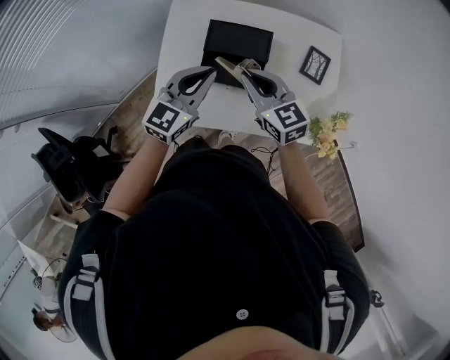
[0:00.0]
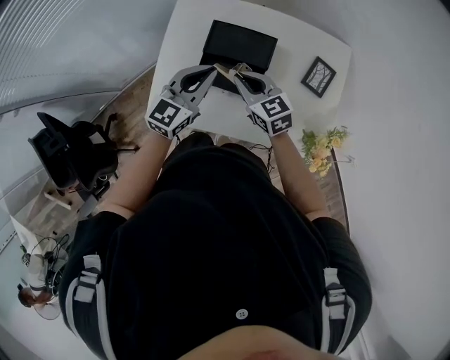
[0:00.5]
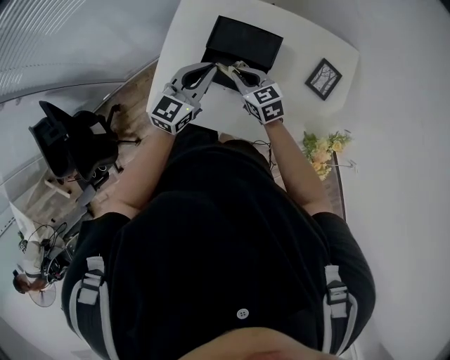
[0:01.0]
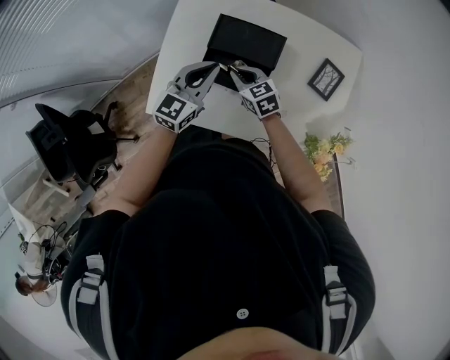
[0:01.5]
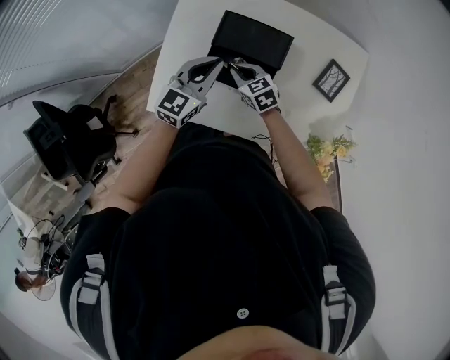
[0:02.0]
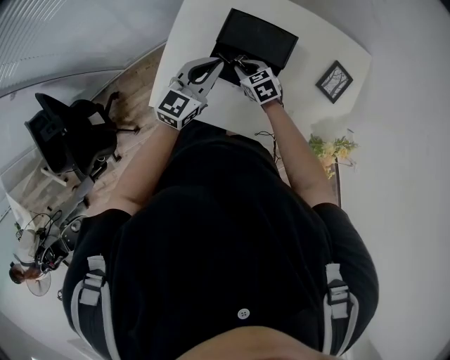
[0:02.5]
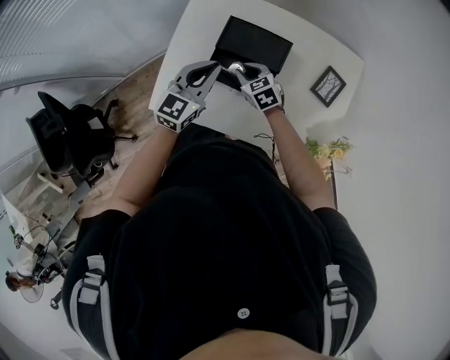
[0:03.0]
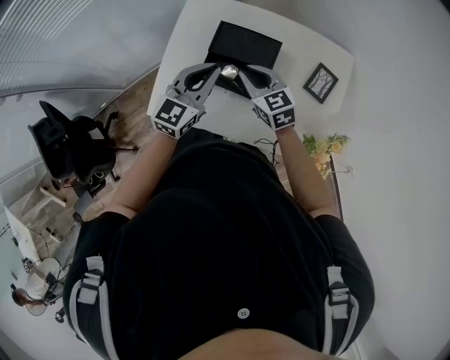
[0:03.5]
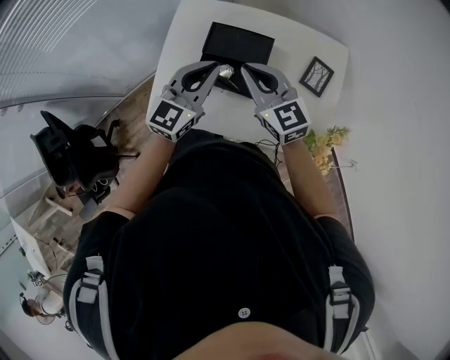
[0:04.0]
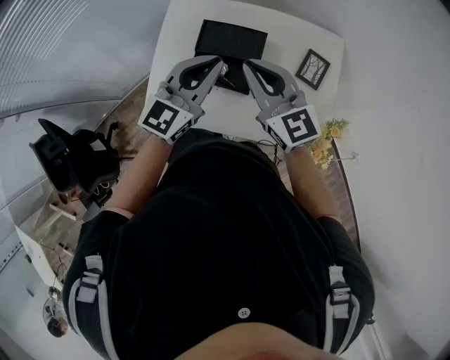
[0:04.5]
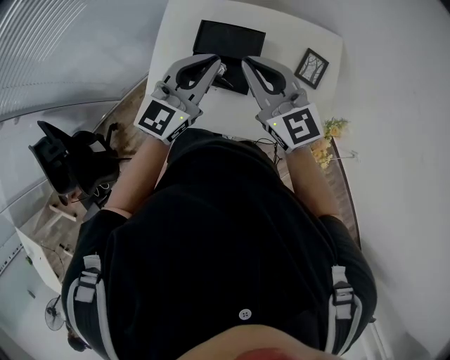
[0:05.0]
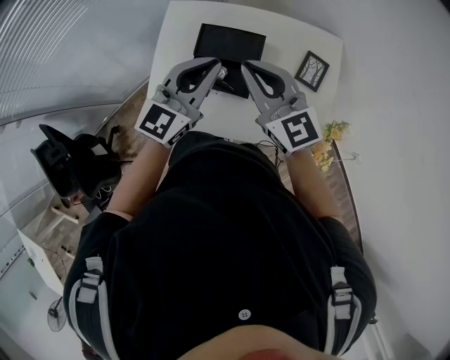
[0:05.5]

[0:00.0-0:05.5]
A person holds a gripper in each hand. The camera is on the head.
0:00.0 to 0:02.0: The right gripper travels downward by about 25 cm, and rotates roughly 30 degrees; the left gripper travels downward and forward by some 10 cm.
0:02.0 to 0:03.5: The left gripper moves upward, roughly 5 cm; the right gripper moves upward, roughly 15 cm.
0:03.5 to 0:05.5: The left gripper moves upward, approximately 10 cm. Meanwhile the right gripper shifts approximately 20 cm upward, and rotates roughly 20 degrees.

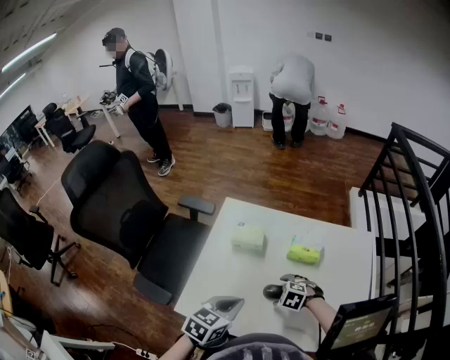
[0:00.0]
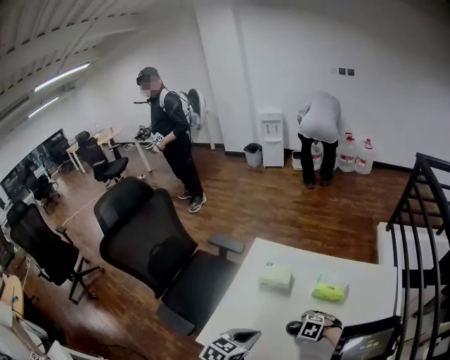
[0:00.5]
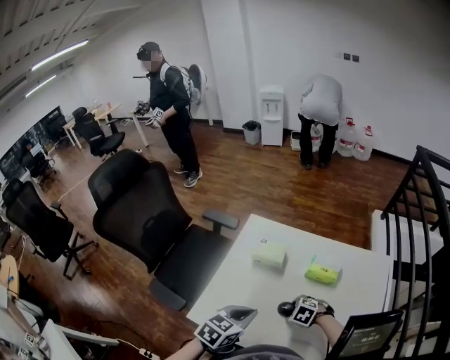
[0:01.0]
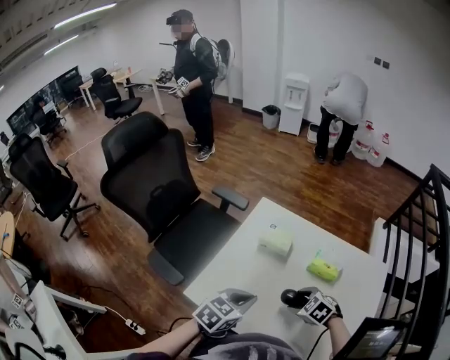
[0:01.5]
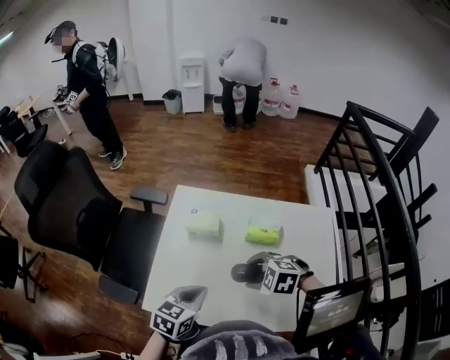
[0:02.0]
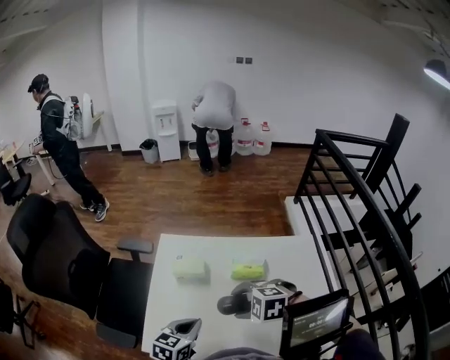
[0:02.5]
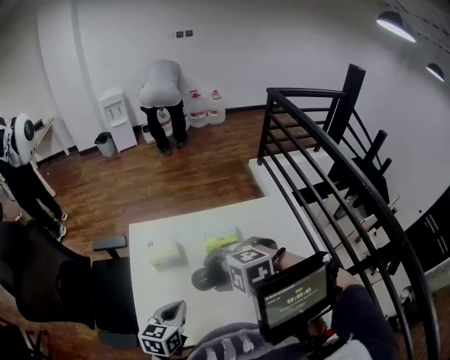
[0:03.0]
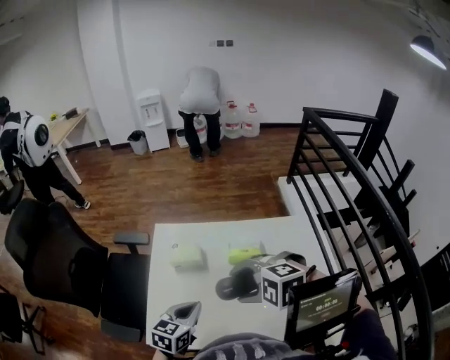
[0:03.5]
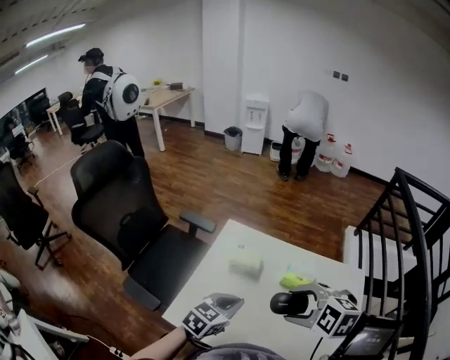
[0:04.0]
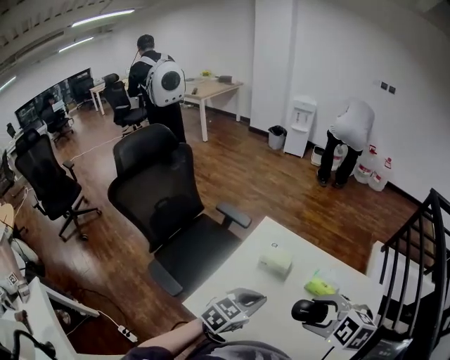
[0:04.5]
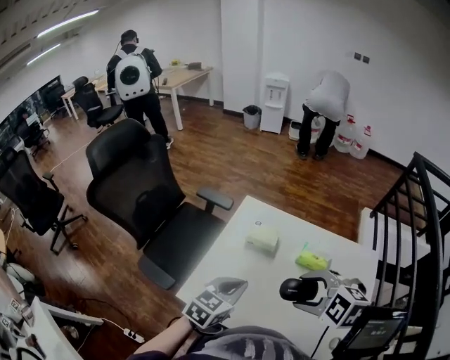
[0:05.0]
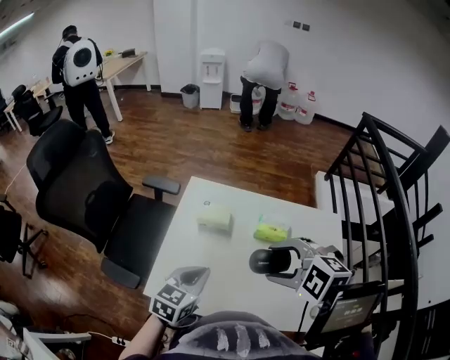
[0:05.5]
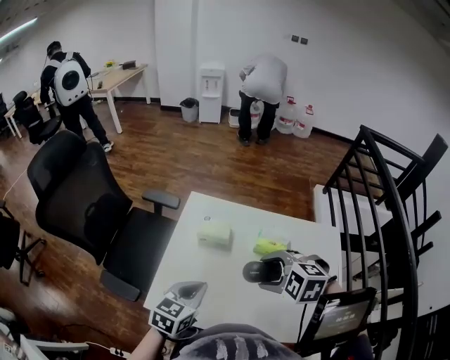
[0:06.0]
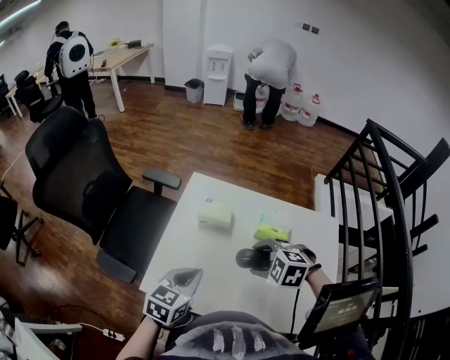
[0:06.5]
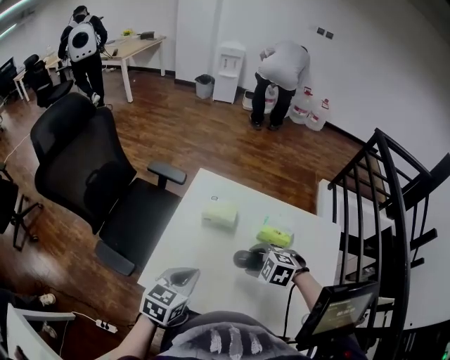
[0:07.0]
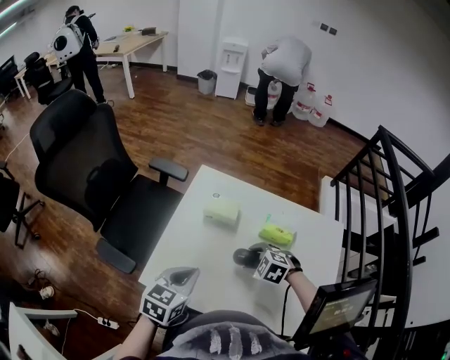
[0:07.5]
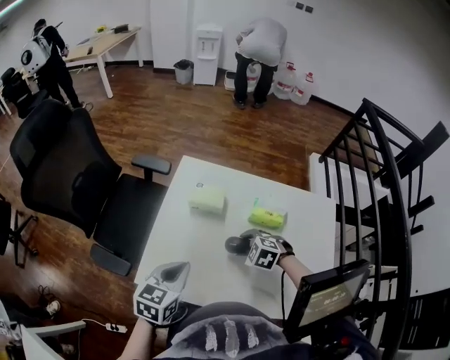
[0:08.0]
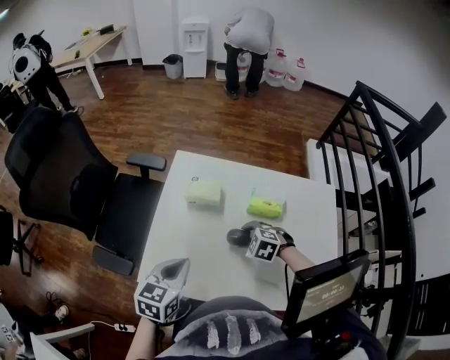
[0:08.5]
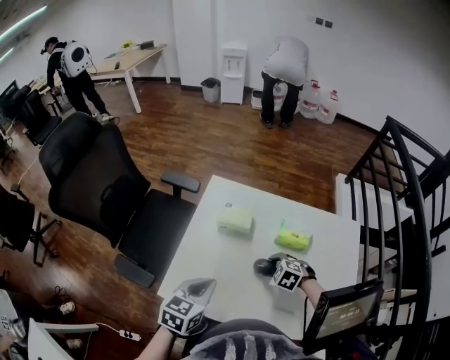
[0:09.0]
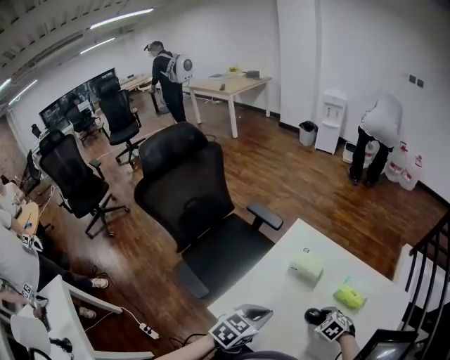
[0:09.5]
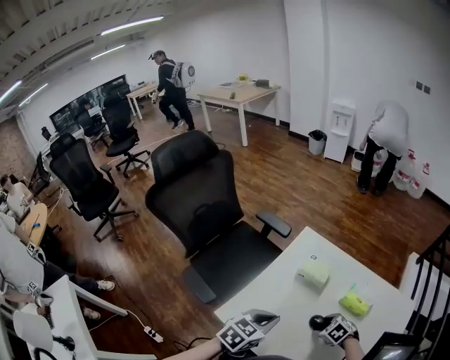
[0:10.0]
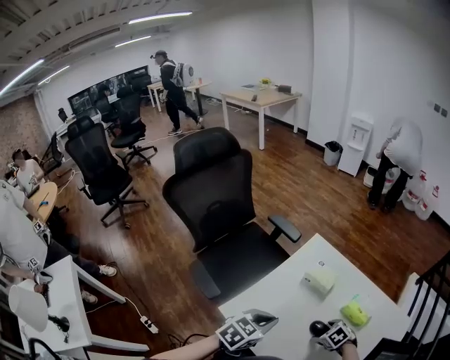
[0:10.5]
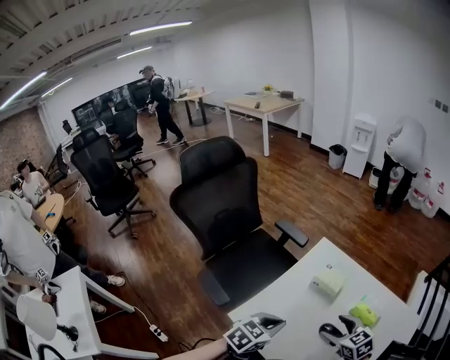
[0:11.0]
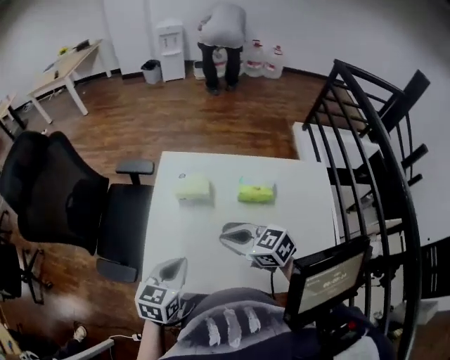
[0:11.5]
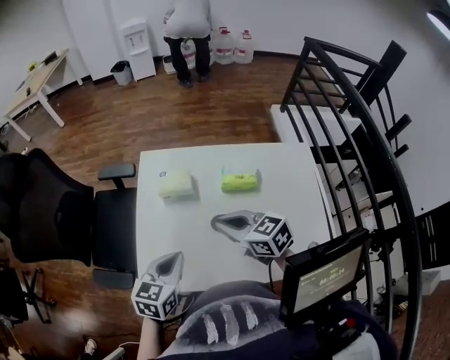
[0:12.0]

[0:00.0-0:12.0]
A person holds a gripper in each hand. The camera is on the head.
0:00.0 to 0:02.0: The right gripper shifts roughly 15 cm upward.
0:02.0 to 0:04.0: The left gripper shifts by about 5 cm. The right gripper moves upward, some 15 cm.
0:04.0 to 0:06.0: The right gripper heads downward, covering about 5 cm, while the left gripper changes place by about 5 cm.
0:06.0 to 0:08.0: The right gripper moves downward, roughly 20 cm.
0:08.0 to 0:10.0: The right gripper goes roughly 5 cm downward.
0:10.0 to 0:12.0: The right gripper travels upward by approximately 20 cm, angles its fingers upward, by approximately 40 degrees, and closes up.

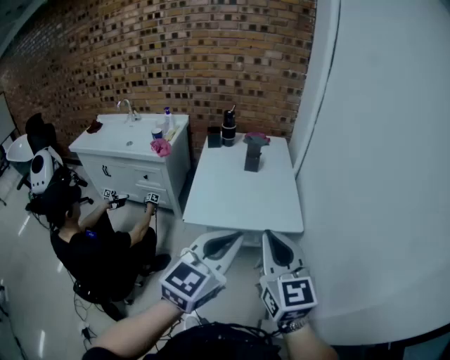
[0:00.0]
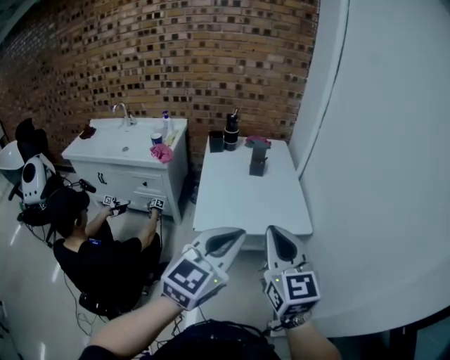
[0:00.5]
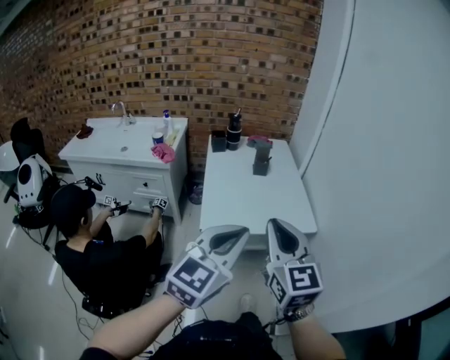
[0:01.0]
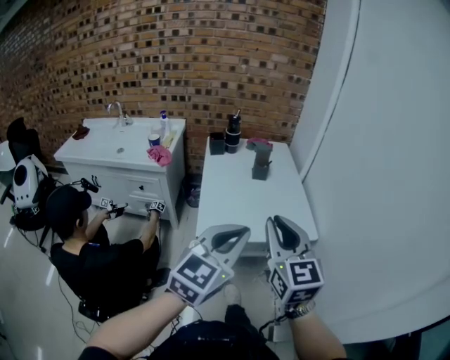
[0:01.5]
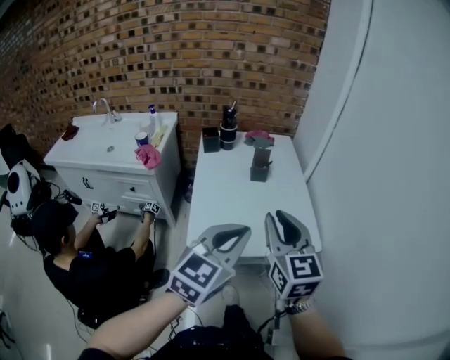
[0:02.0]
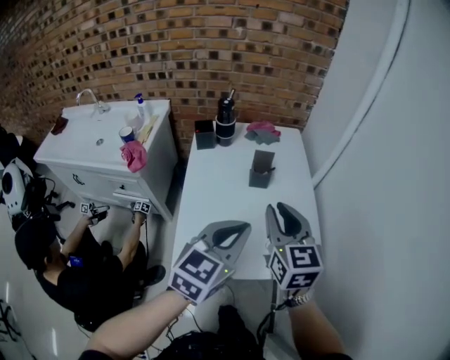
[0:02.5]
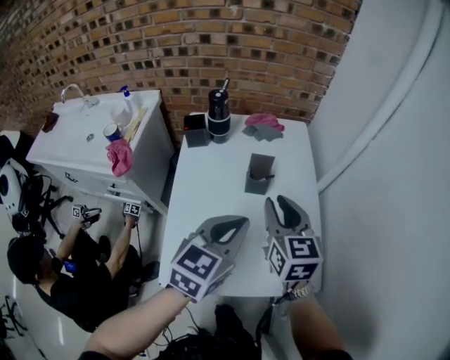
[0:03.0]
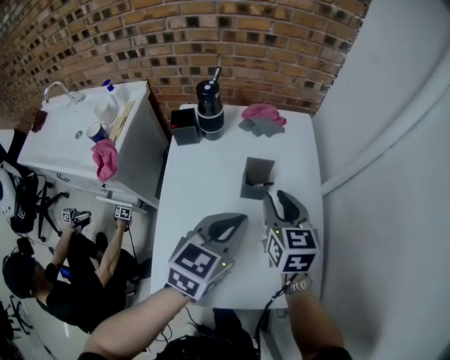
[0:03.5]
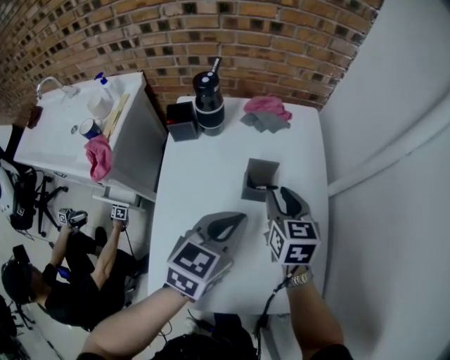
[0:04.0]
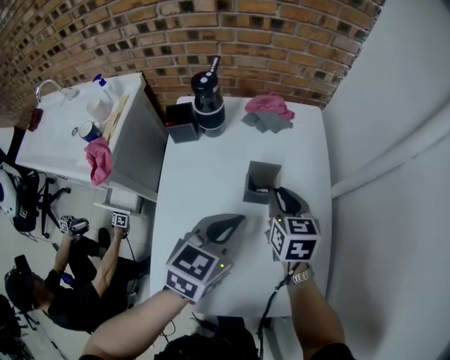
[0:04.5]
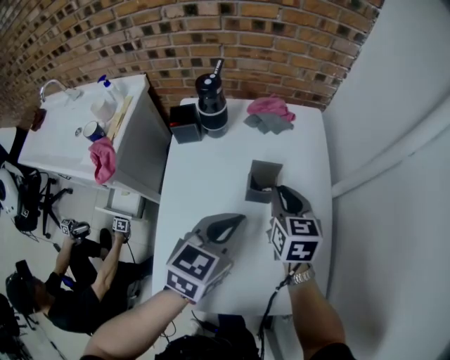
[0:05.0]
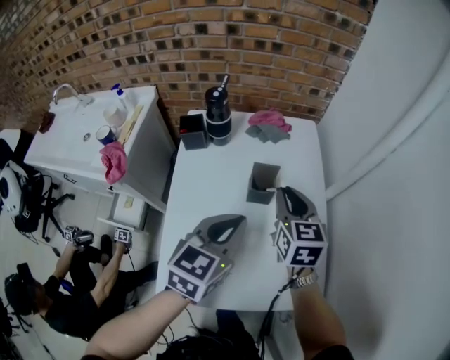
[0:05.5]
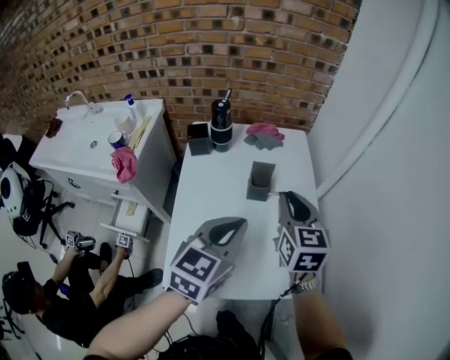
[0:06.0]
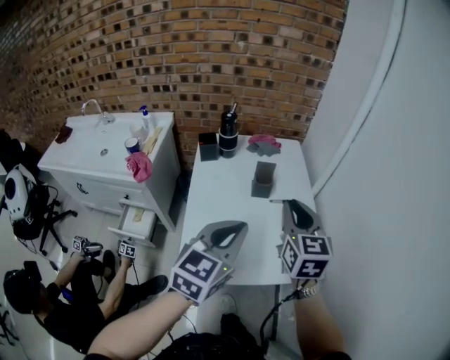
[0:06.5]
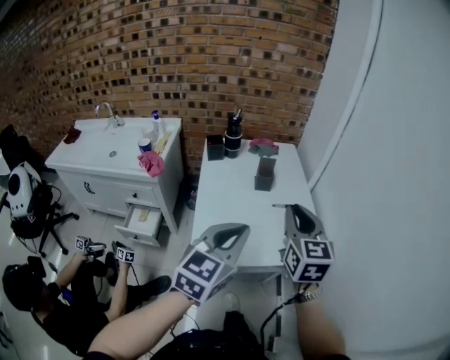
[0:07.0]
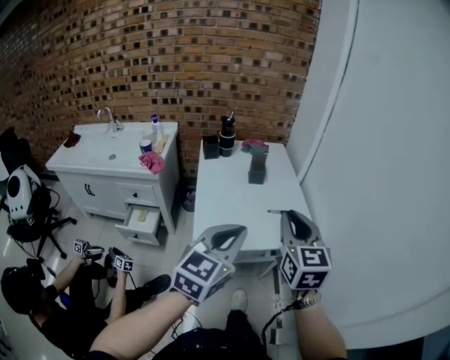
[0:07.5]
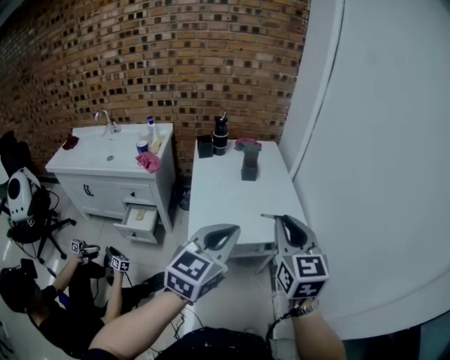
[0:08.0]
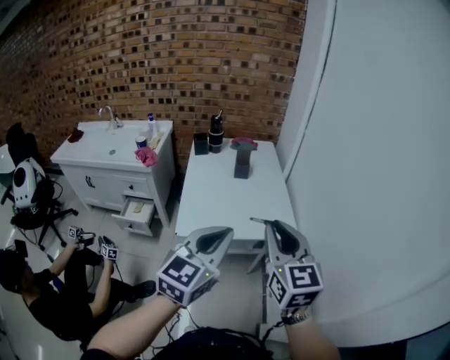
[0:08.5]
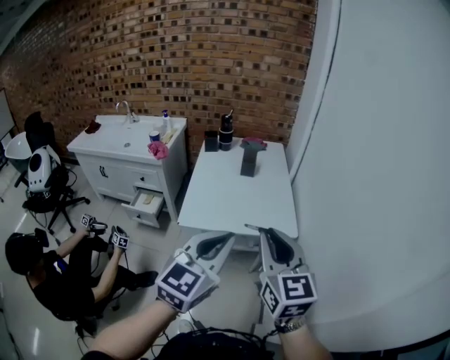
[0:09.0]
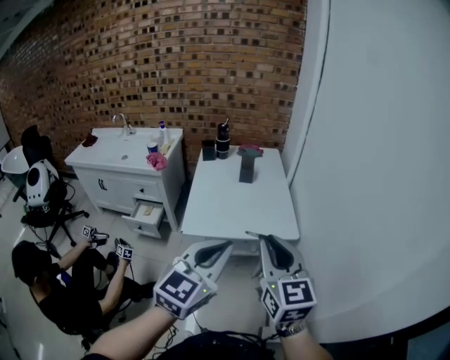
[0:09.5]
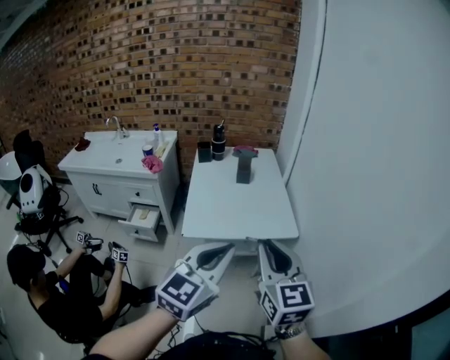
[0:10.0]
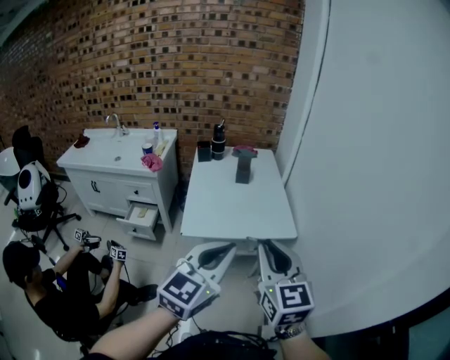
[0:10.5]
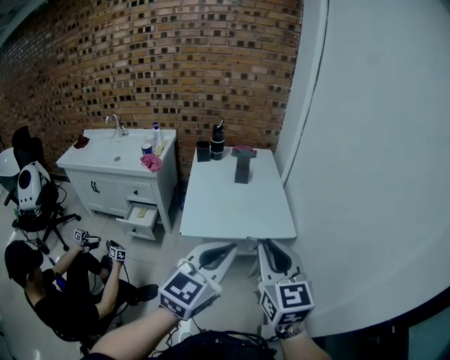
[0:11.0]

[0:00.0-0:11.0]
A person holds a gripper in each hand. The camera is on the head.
0:00.0 to 0:02.0: Both grippers travel together forward and to the left, approximately 25 cm.
0:02.0 to 0:03.5: The right gripper moves forward and downward, some 40 cm, and turns by about 20 degrees. The left gripper travels forward by some 35 cm, and changes its angle by about 20 degrees.
0:03.5 to 0:05.5: The right gripper moves roughly 10 cm downward and comes back.
0:05.5 to 0:07.5: The two grippers travel together, backward, approximately 40 cm. The left gripper changes its angle by some 20 degrees.
0:07.5 to 0:09.0: The right gripper travels backward and to the right by some 20 cm. Meanwhile the left gripper travels to the right and backward by some 20 cm.
0:09.0 to 0:11.0: The right gripper changes place by about 5 cm.
